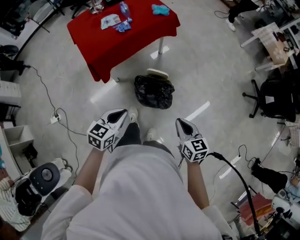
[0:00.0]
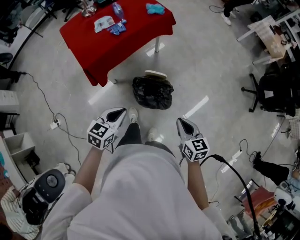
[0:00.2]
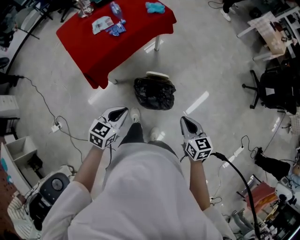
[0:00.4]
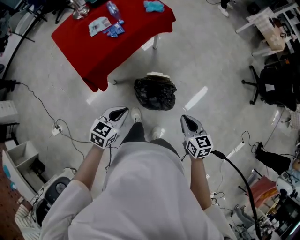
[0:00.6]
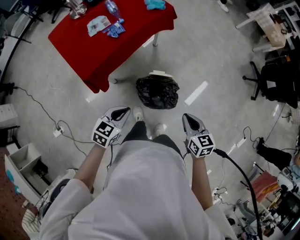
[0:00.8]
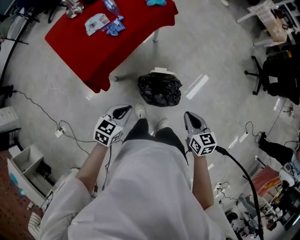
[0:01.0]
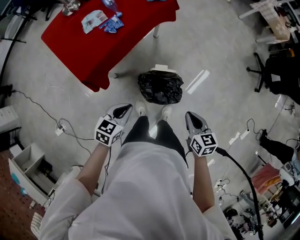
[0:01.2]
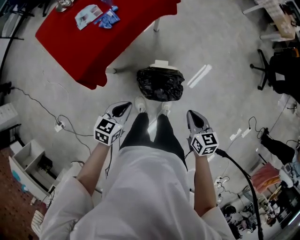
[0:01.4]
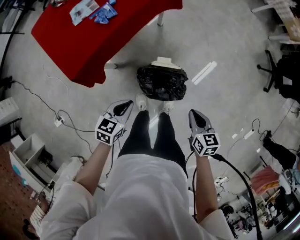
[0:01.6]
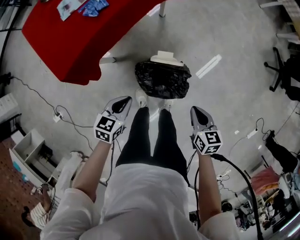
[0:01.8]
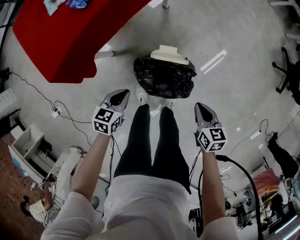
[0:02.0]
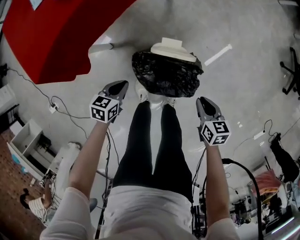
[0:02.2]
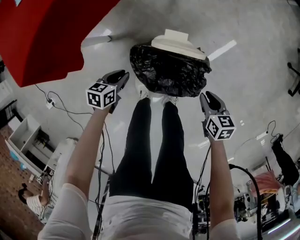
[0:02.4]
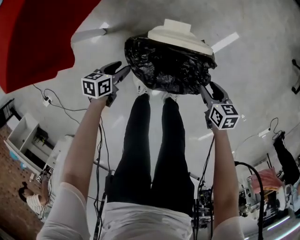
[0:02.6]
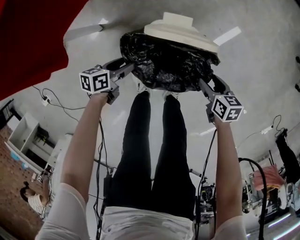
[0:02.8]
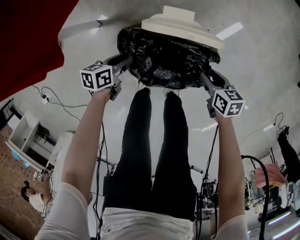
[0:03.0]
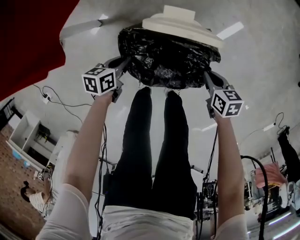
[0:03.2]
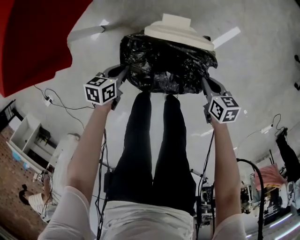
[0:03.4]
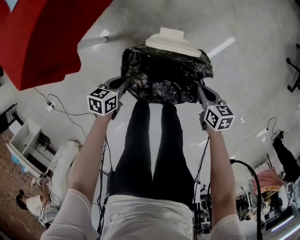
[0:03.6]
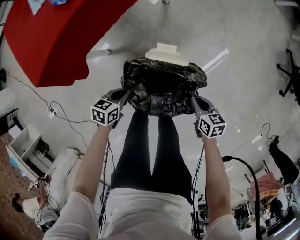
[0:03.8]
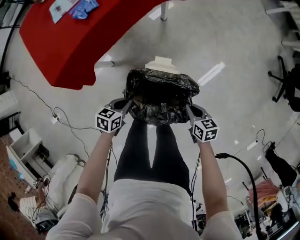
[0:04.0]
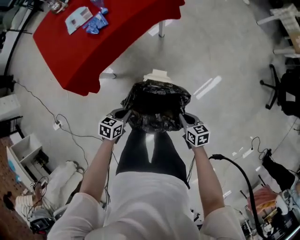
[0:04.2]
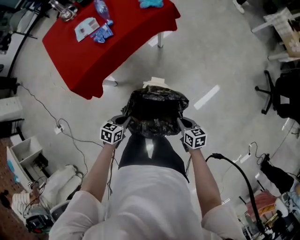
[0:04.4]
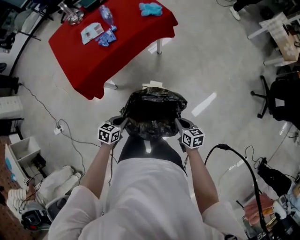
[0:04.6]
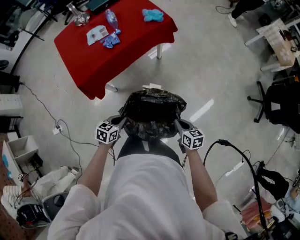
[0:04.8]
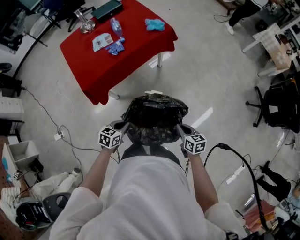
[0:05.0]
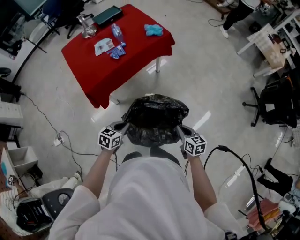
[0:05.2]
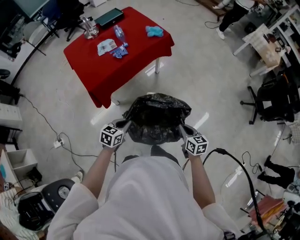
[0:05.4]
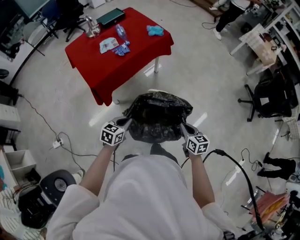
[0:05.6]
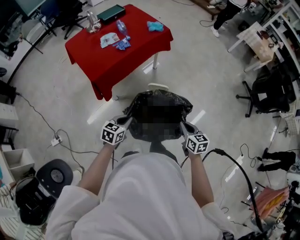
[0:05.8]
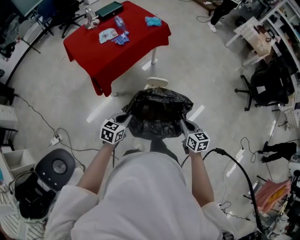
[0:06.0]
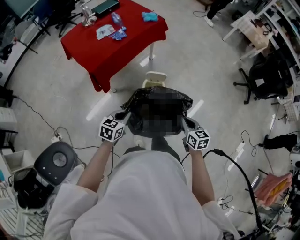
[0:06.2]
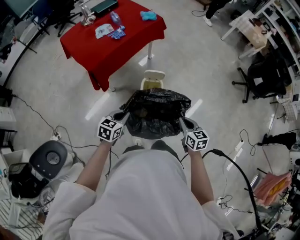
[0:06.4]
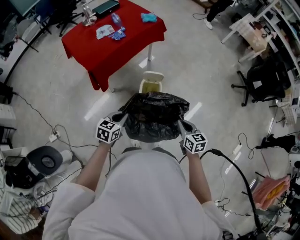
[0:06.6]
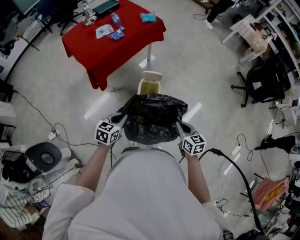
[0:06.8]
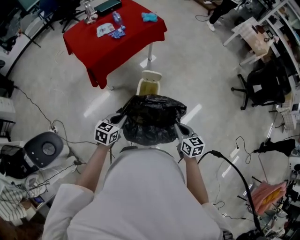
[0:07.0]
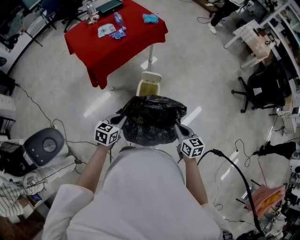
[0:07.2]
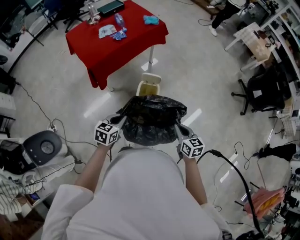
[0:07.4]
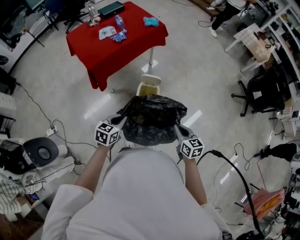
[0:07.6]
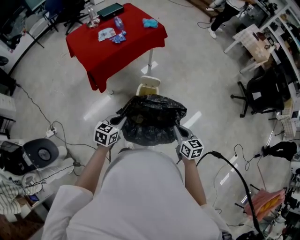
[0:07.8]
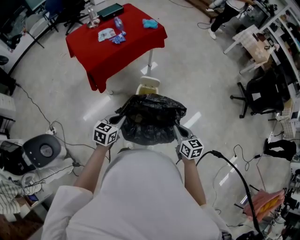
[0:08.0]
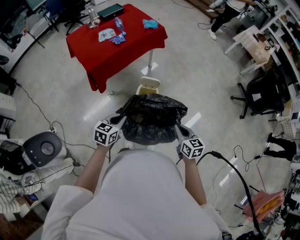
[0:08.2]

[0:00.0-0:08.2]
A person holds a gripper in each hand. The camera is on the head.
0:00.0 to 0:01.6: The right gripper shifts some 20 cm downward and forward, and changes its angle by about 20 degrees. Meanwhile the left gripper shifts some 30 cm downward, forward and to the left.
0:01.6 to 0:03.2: The grippers both shift downward by roughly 50 cm. The right gripper swivels some 20 degrees, and opens, then closes once more. Meanwhile the left gripper turns by roughly 30 degrees, and opens, then closes once more.
0:03.2 to 0:05.0: The grippers both shift upward by about 50 cm. The left gripper rotates roughly 30 degrees; the right gripper turns by some 20 degrees.
0:05.0 to 0:06.6: The two grippers go some 25 cm backward and upward.
0:06.6 to 0:08.2: Both grippers travel together to the right, some 5 cm.

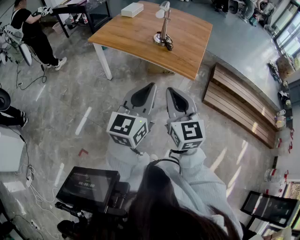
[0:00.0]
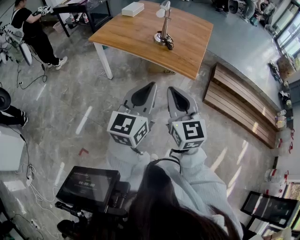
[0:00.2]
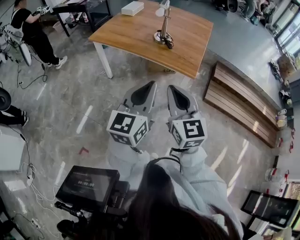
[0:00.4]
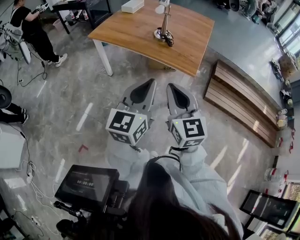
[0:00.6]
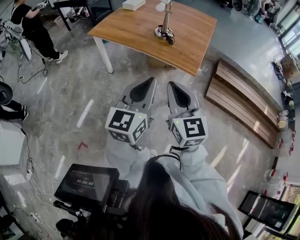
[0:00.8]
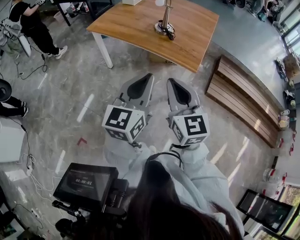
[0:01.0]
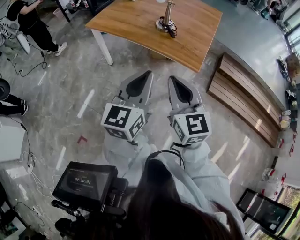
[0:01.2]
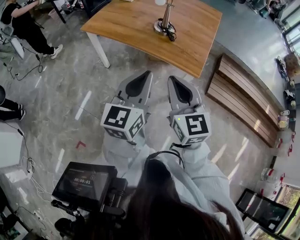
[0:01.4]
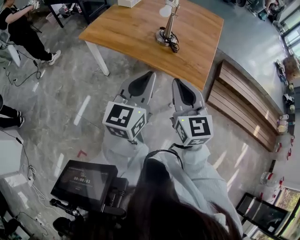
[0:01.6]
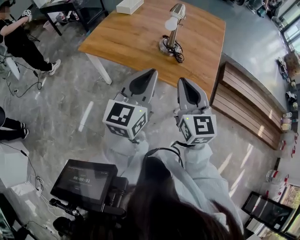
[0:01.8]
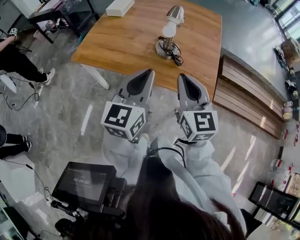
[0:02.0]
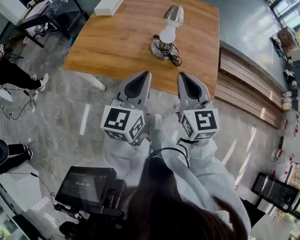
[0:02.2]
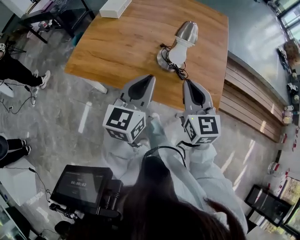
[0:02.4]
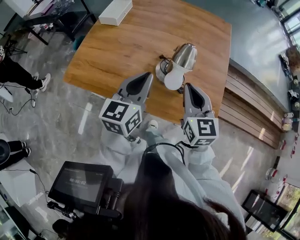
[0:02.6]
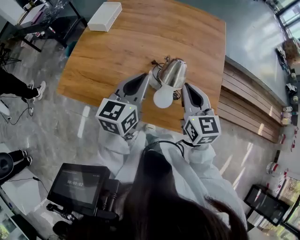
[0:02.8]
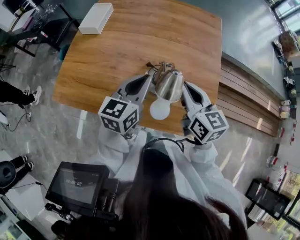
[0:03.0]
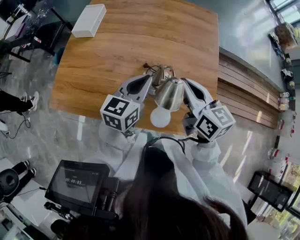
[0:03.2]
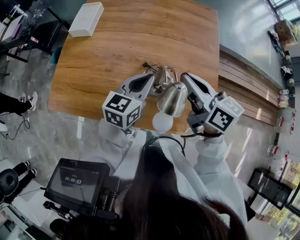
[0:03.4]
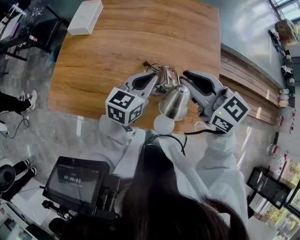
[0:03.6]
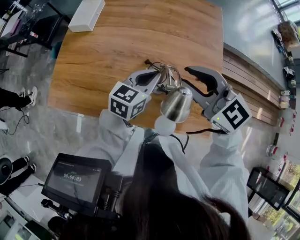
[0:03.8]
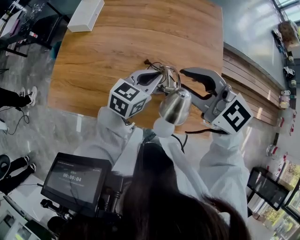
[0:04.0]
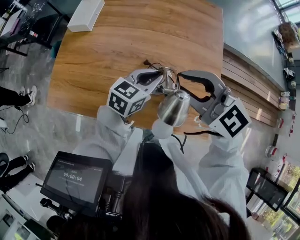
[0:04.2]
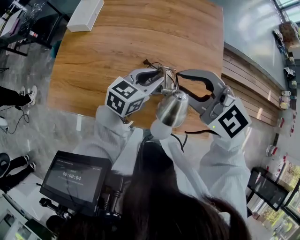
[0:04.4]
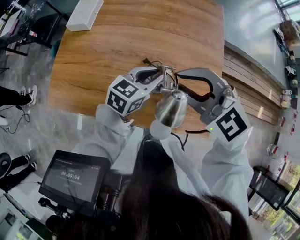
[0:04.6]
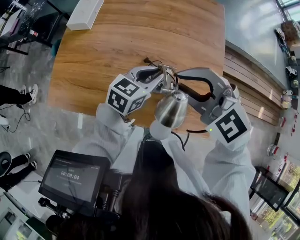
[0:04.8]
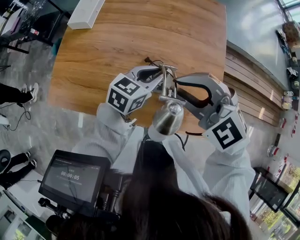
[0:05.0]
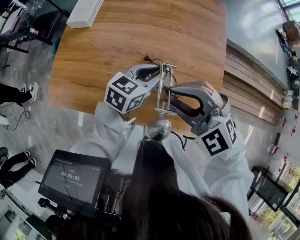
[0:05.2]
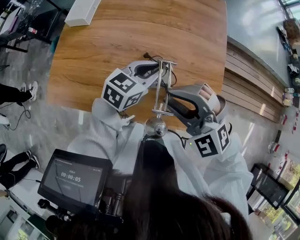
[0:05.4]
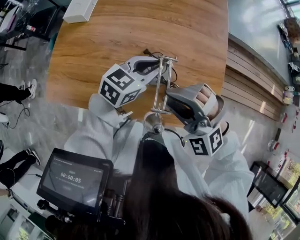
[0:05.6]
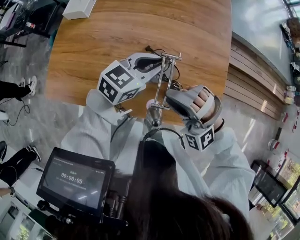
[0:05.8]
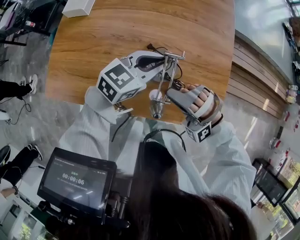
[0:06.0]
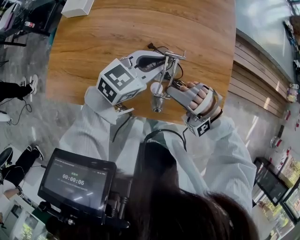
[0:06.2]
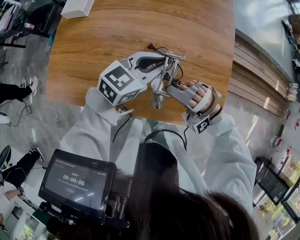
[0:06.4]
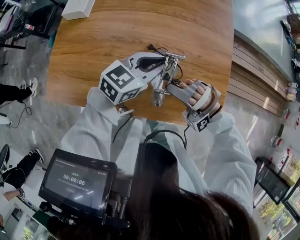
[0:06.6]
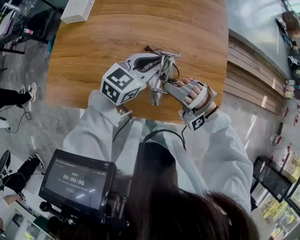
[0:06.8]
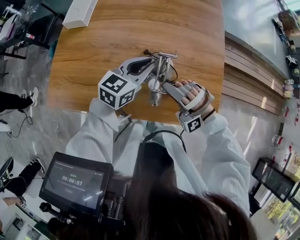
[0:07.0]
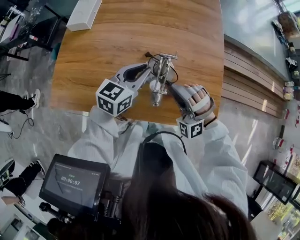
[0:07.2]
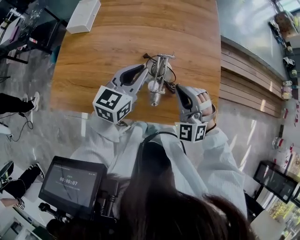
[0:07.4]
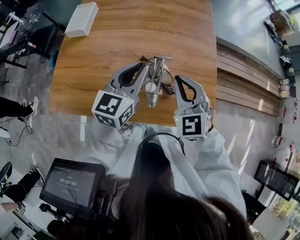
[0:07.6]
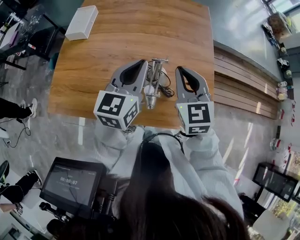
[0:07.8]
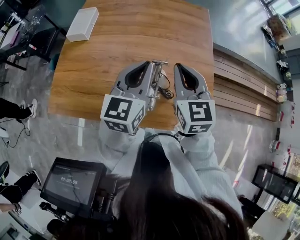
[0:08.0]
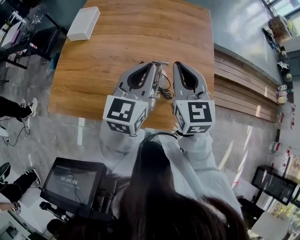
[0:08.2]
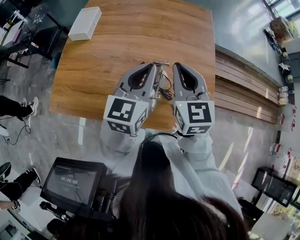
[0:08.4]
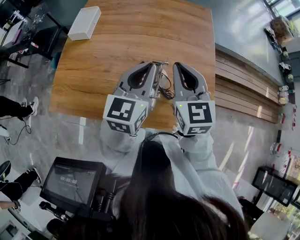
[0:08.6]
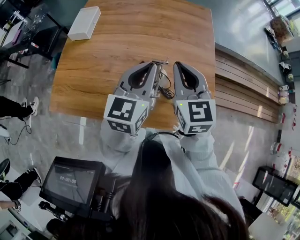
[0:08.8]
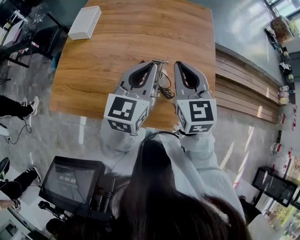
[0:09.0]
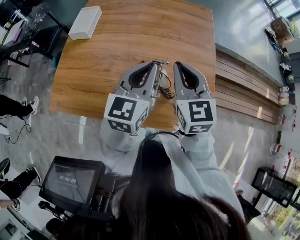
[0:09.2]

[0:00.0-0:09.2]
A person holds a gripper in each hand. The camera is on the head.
0:00.0 to 0:01.6: Both grippers move forward, some 20 cm.
0:01.6 to 0:03.0: Both grippers move forward, about 40 cm. The left gripper turns by approximately 20 degrees; the right gripper changes its angle by some 20 degrees.
0:03.0 to 0:04.6: The left gripper goes approximately 10 cm downward and to the right, and turns by approximately 20 degrees. Meanwhile the right gripper is displaced upward by about 5 cm, and twists some 50 degrees counterclockwise, seen from behind.
0:04.6 to 0:06.2: The right gripper is displaced downward and backward by about 15 cm, and rotates around the line of its fingers by some 60 degrees, counterclockwise from behind.
0:06.2 to 0:07.6: The right gripper travels upward and forward by approximately 10 cm, rolls clockwise, seen from behind, by approximately 70 degrees, and closes; the left gripper shifts approximately 5 cm upward, and rotates roughly 30 degrees.
0:07.6 to 0:09.2: The right gripper shifts approximately 5 cm upward, and changes its angle by roughly 20 degrees.

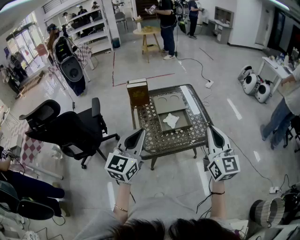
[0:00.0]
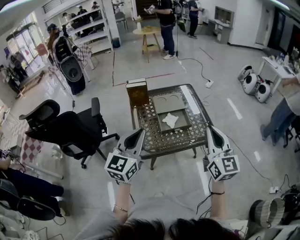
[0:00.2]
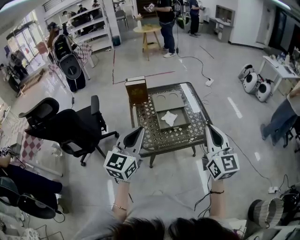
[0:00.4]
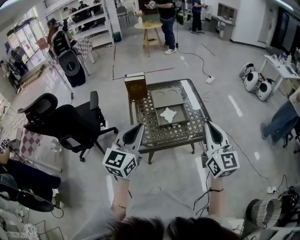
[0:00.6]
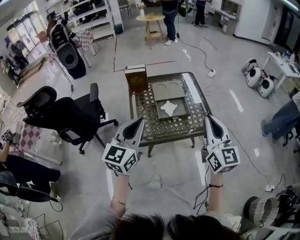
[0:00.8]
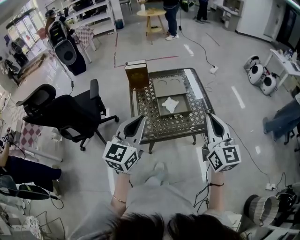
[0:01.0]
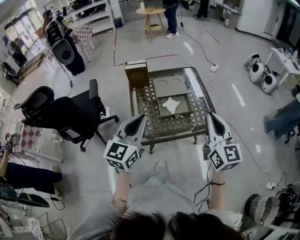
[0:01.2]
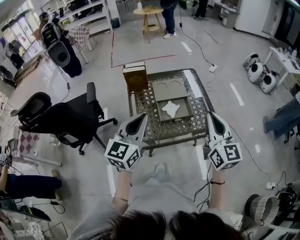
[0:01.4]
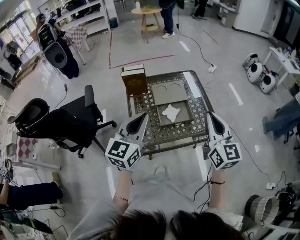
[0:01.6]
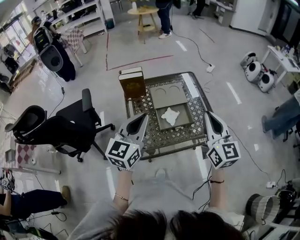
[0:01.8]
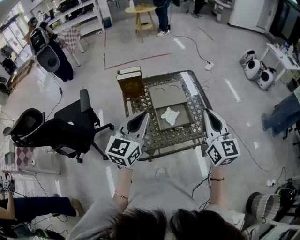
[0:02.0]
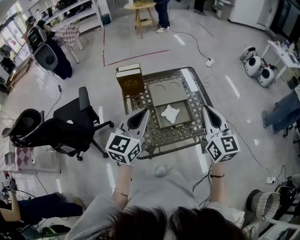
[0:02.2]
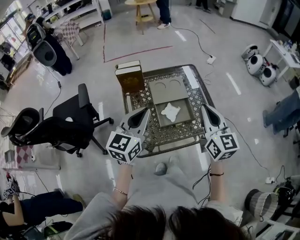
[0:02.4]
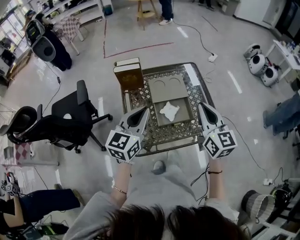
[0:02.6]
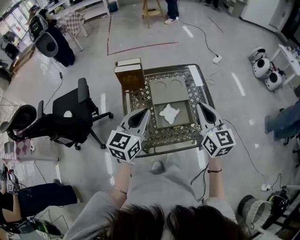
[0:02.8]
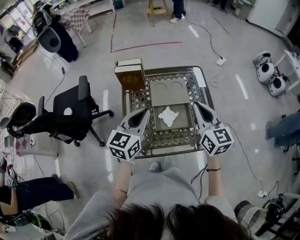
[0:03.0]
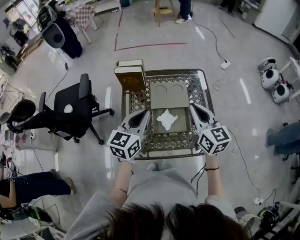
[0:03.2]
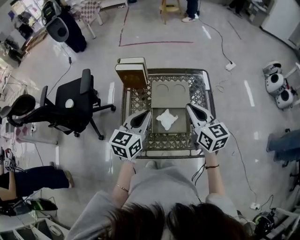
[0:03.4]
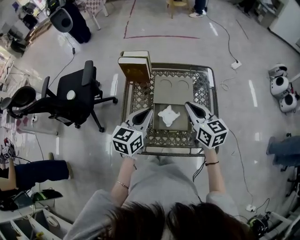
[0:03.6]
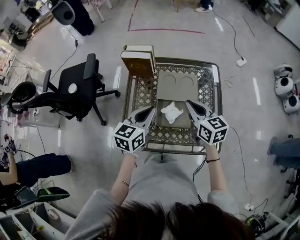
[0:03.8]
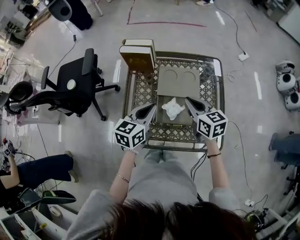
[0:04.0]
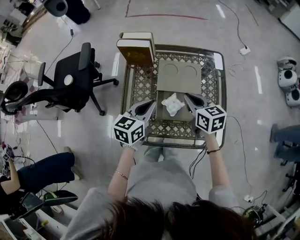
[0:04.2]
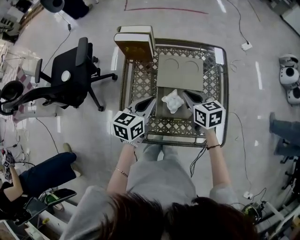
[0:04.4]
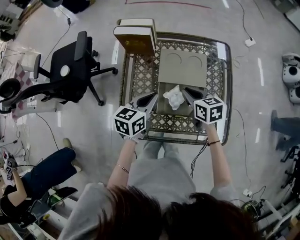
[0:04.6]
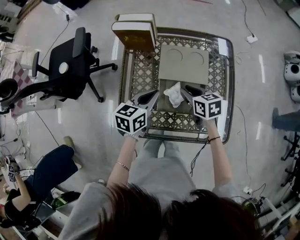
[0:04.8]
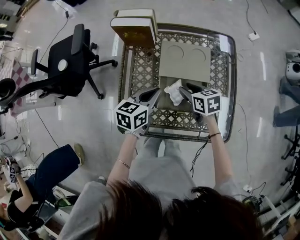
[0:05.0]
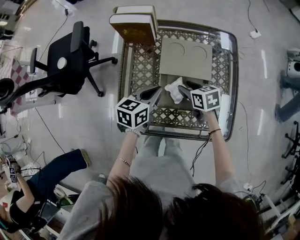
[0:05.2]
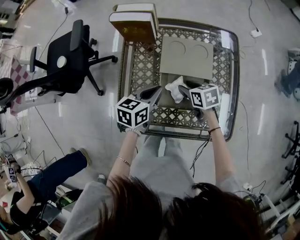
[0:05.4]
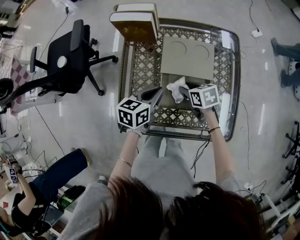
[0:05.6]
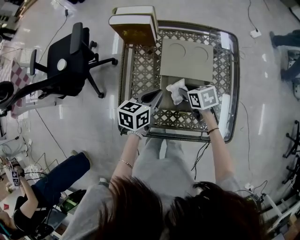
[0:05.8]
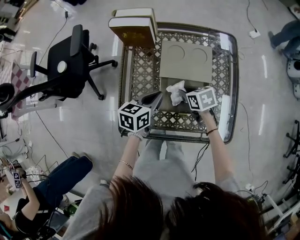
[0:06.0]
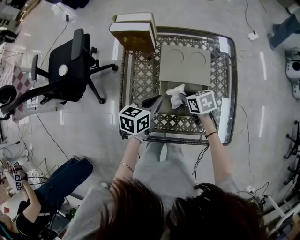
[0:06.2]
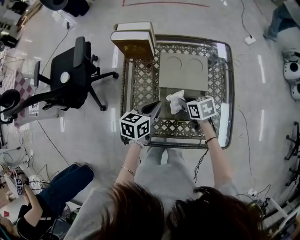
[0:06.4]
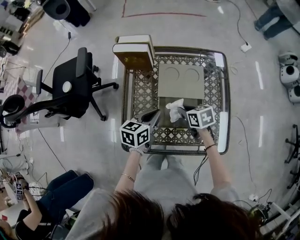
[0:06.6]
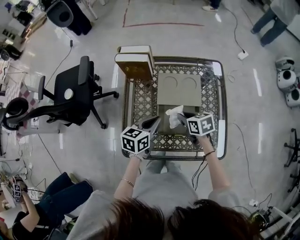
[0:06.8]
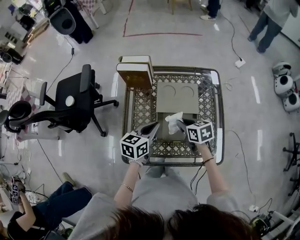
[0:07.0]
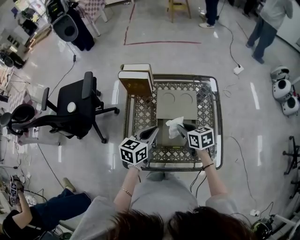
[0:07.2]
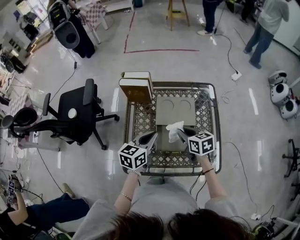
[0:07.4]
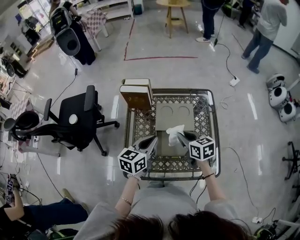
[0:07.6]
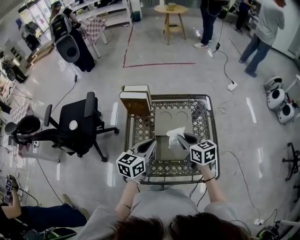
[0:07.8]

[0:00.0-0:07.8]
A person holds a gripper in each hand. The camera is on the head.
0:00.0 to 0:01.6: The two grippers go some 10 cm forward.
0:01.6 to 0:03.2: Both grippers move forward and downward, about 20 cm. The right gripper turns by approximately 20 degrees.
0:03.2 to 0:04.6: Both grippers travel together downward, roughly 20 cm. The left gripper swivels some 20 degrees. The right gripper rotates roughly 40 degrees.
0:04.6 to 0:06.2: The left gripper travels downward by about 5 cm; the right gripper shifts some 10 cm downward, and opens, then closes once more.
0:06.2 to 0:07.8: Both grippers travel together upward, roughly 20 cm. The right gripper turns by roughly 30 degrees.
